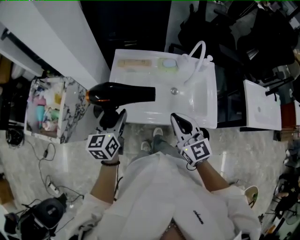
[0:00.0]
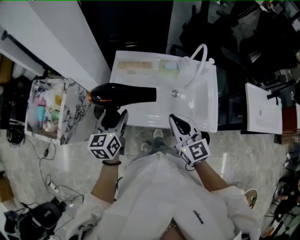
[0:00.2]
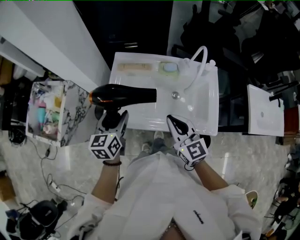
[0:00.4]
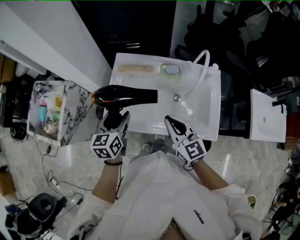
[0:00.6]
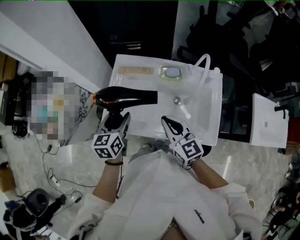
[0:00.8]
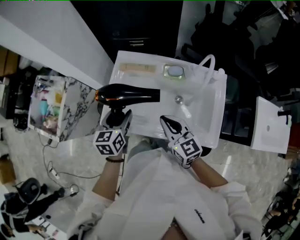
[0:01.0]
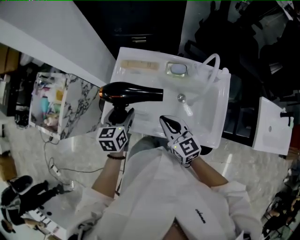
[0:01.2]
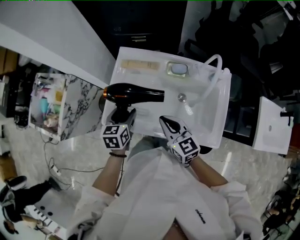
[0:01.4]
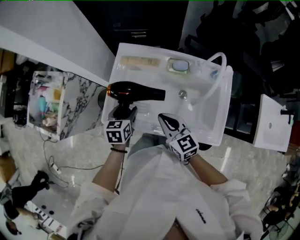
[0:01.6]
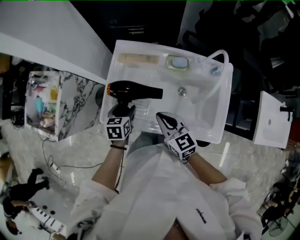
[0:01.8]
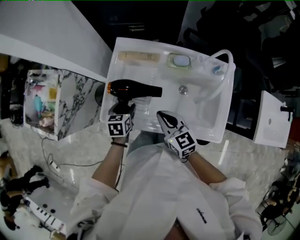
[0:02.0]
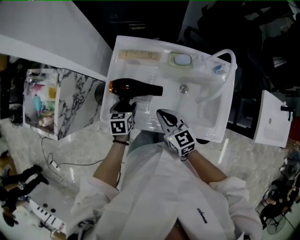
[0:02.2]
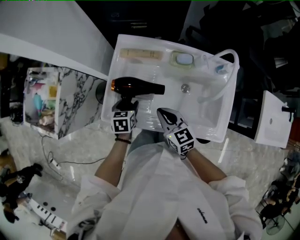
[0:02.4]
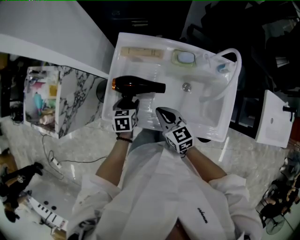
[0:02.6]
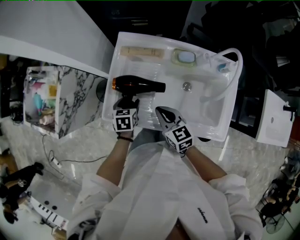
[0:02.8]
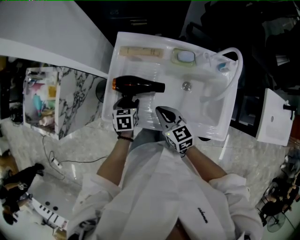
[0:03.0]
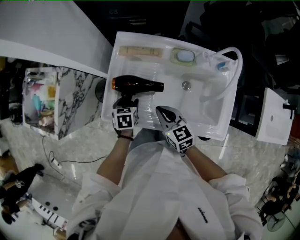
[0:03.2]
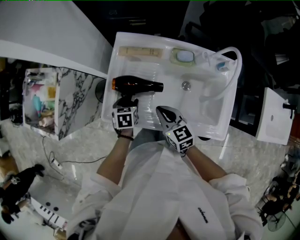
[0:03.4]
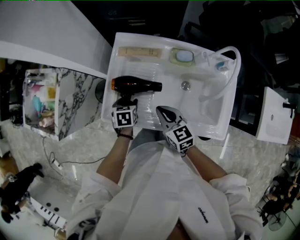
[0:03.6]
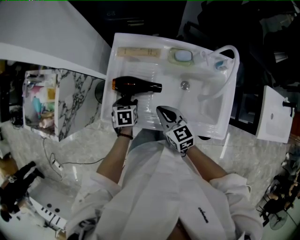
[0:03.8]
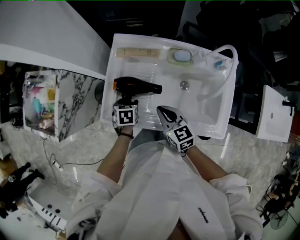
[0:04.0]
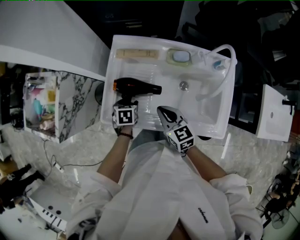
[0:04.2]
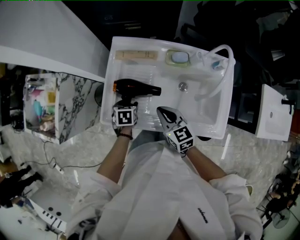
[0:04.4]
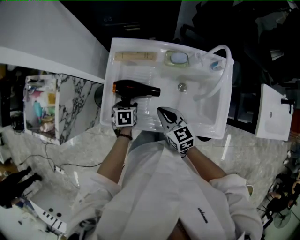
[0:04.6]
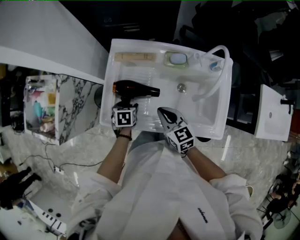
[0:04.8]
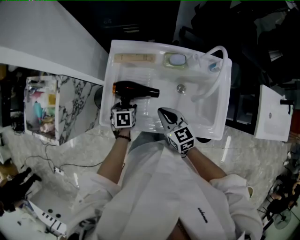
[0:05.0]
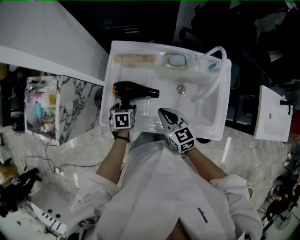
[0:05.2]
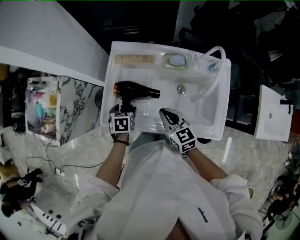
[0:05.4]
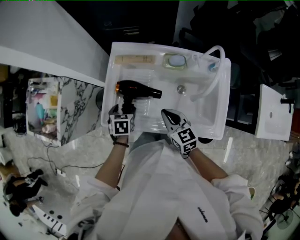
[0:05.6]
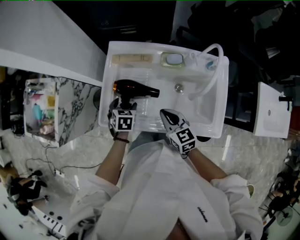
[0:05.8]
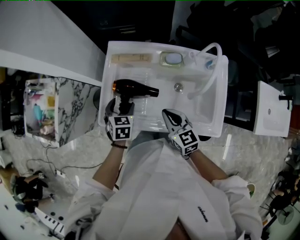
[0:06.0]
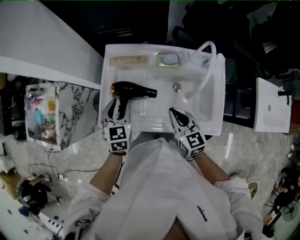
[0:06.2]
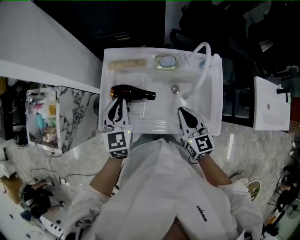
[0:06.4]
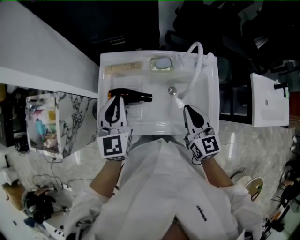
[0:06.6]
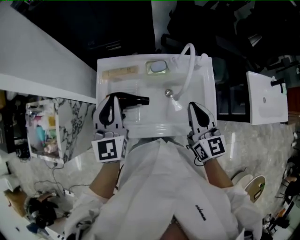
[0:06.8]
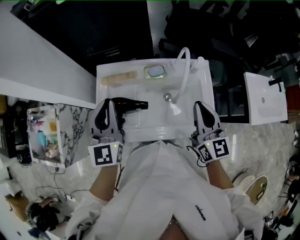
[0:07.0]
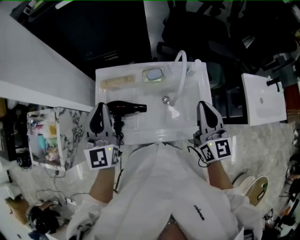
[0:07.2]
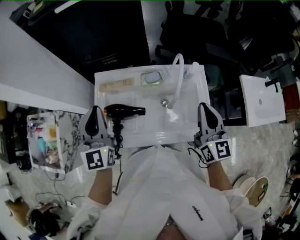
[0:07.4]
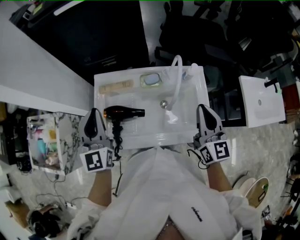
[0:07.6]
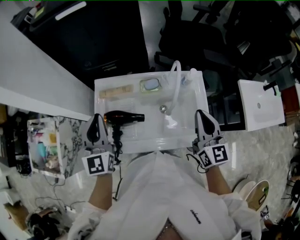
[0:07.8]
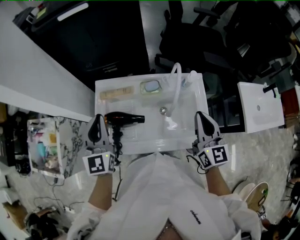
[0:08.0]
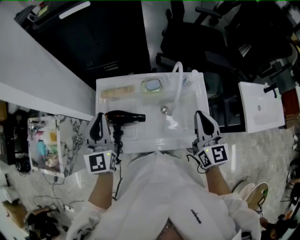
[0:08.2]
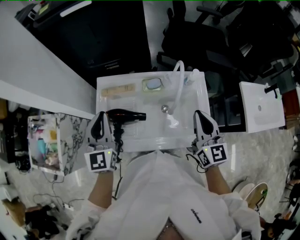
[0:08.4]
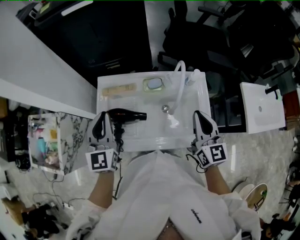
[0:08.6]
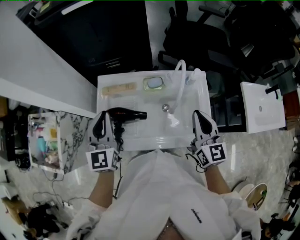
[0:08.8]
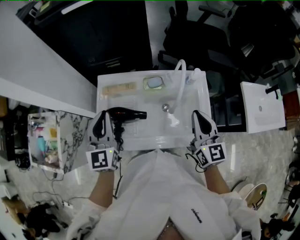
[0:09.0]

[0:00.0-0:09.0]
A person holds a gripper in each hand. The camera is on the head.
0.0 to 1.6 s: The right gripper shifts roughly 15 cm downward and forward, and swivels approximately 20 degrees, while the left gripper heads downward, forward and to the right, covering some 20 cm, and changes its angle by approximately 30 degrees.
1.6 to 3.0 s: Both grippers move downward, approximately 10 cm.
3.0 to 4.4 s: The grippers stay close to where they were, moving slightly.
4.4 to 6.0 s: The right gripper shifts by approximately 5 cm. Meanwhile the left gripper heads upward, covering some 10 cm, and swivels some 20 degrees.
6.0 to 7.6 s: The left gripper moves upward, about 30 cm, points its fingers approximately 50 degrees further upward, and closes; the right gripper moves upward and to the right, roughly 30 cm, and rotates approximately 40 degrees.
7.6 to 9.0 s: The grippers move only a little.

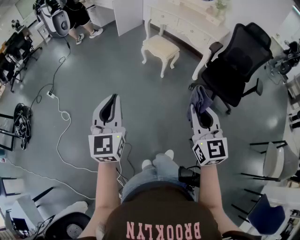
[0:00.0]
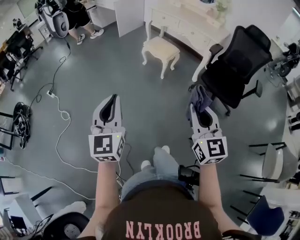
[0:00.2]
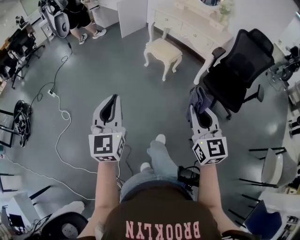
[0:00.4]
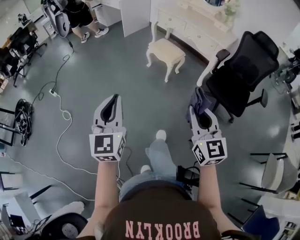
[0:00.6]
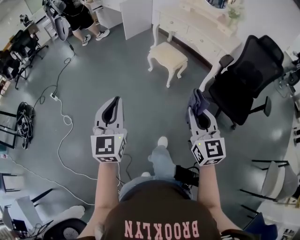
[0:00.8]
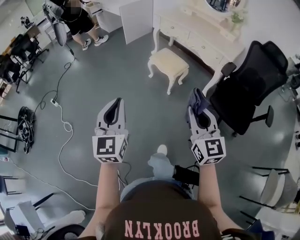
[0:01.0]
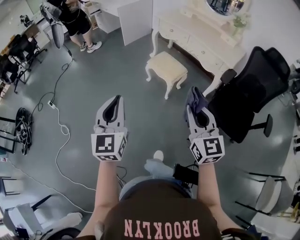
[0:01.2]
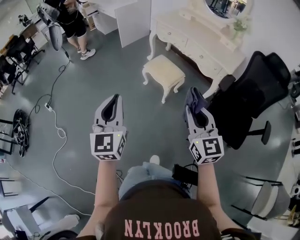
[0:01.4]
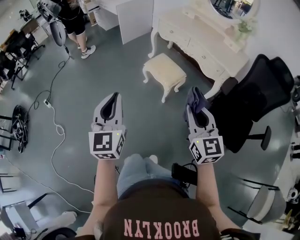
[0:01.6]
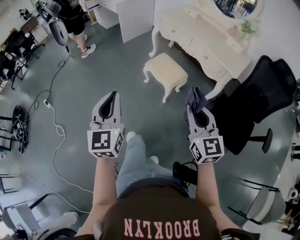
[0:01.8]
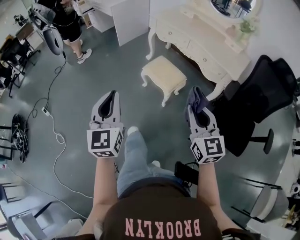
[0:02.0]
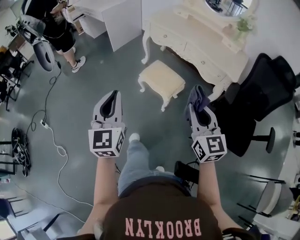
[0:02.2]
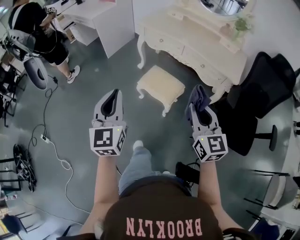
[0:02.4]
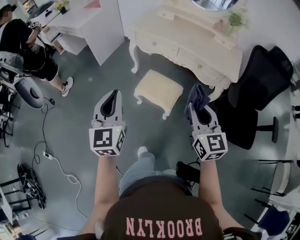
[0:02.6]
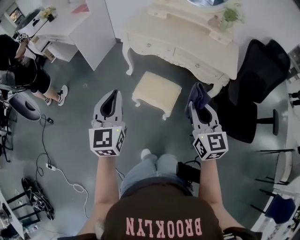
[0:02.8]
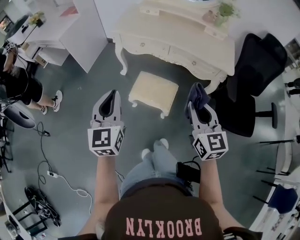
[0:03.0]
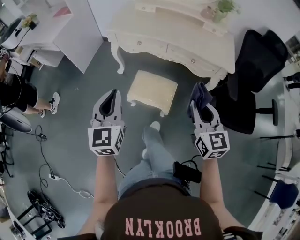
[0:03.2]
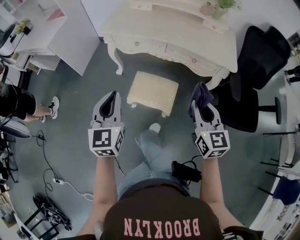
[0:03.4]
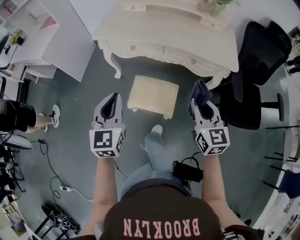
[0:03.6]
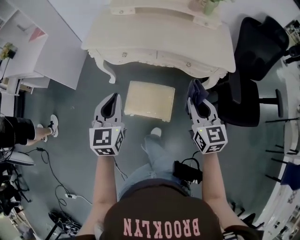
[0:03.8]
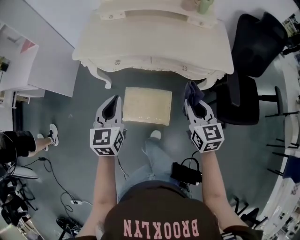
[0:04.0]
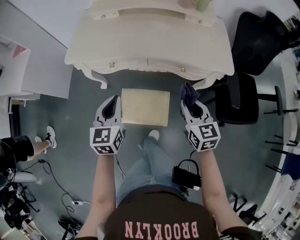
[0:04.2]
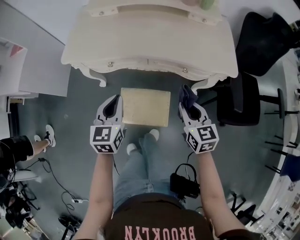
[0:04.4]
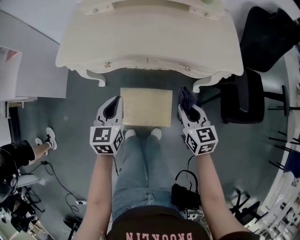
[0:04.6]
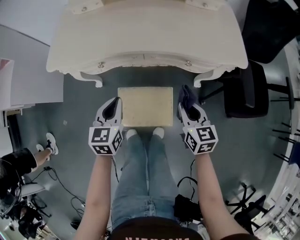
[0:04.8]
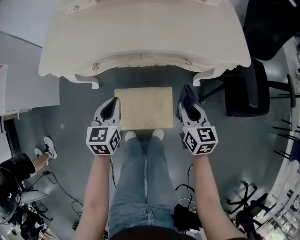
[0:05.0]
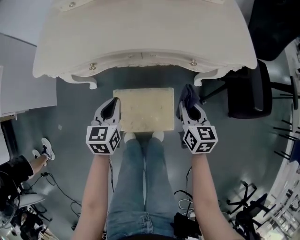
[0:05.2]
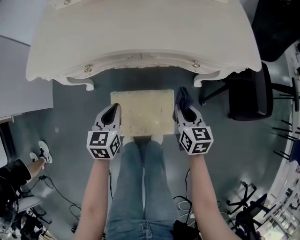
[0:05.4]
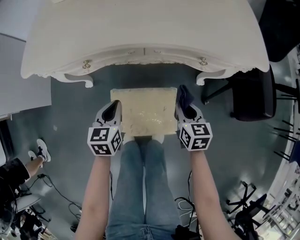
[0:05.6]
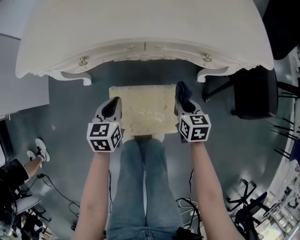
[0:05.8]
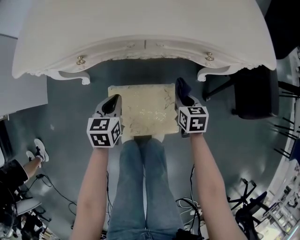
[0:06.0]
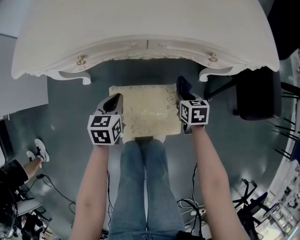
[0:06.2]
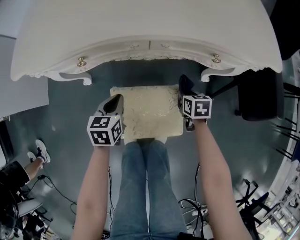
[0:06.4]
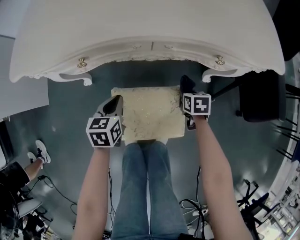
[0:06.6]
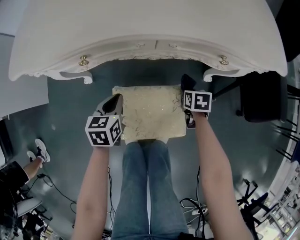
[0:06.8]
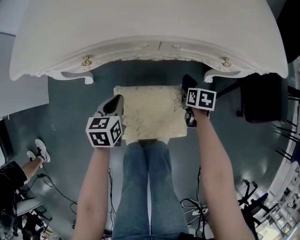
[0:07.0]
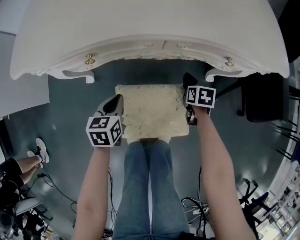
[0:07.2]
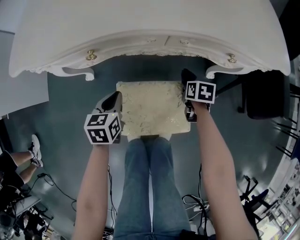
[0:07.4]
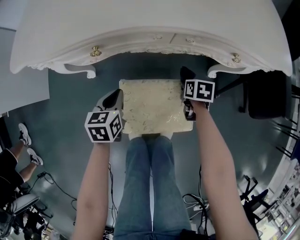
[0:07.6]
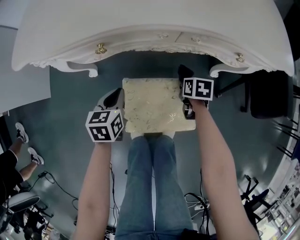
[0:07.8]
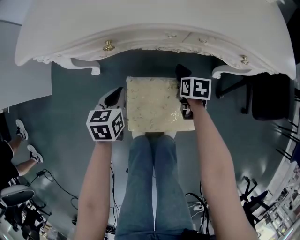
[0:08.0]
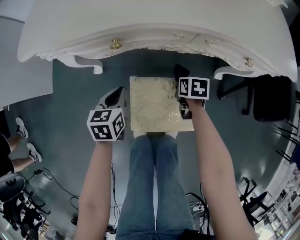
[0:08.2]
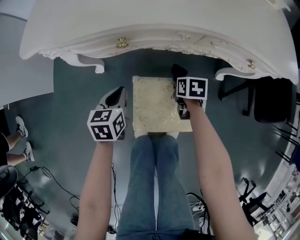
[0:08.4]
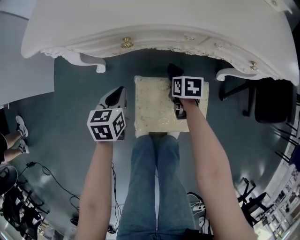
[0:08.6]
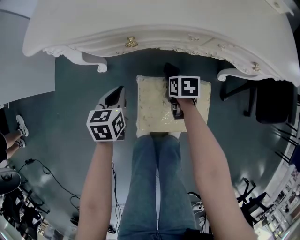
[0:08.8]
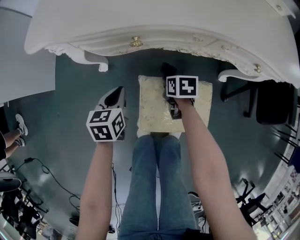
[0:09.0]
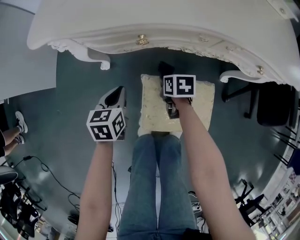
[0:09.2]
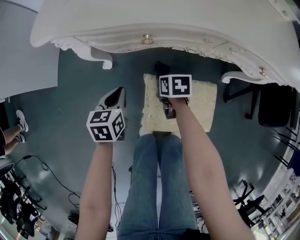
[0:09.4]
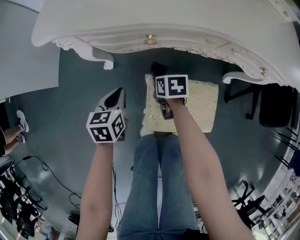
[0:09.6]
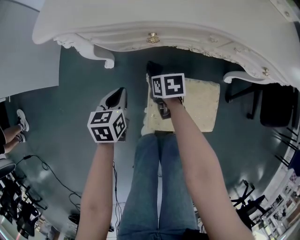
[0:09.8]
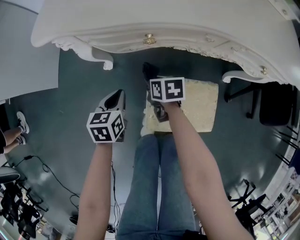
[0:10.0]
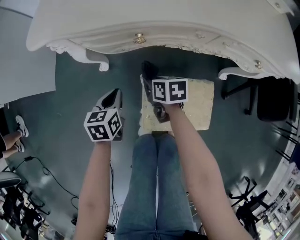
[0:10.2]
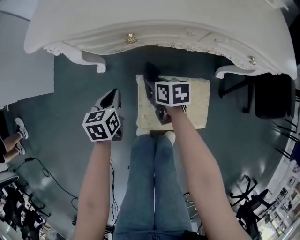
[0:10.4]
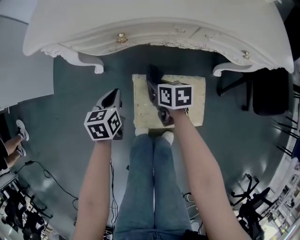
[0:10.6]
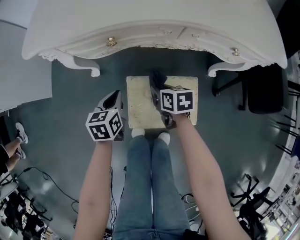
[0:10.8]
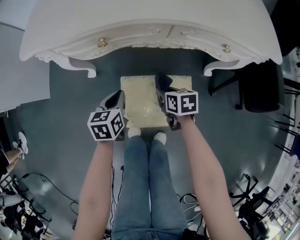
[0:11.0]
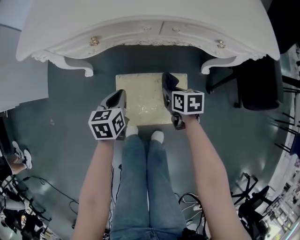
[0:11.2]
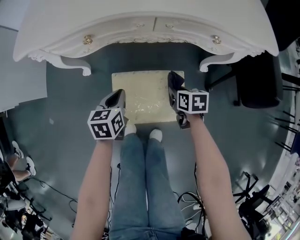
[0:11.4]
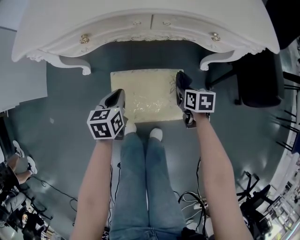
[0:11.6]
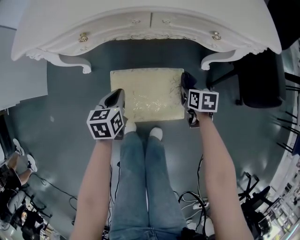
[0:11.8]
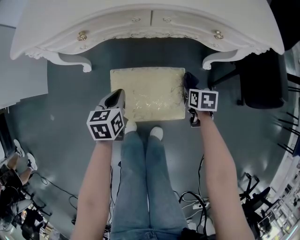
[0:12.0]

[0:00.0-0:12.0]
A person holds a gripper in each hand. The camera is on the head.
0.0 to 1.6 s: Both grippers move forward, some 35 cm.
1.6 to 3.0 s: The left gripper changes place by roughly 40 cm, and changes its angle by some 30 degrees. Meanwhile the right gripper ends up about 35 cm from where it was, and swivels some 30 degrees.
3.0 to 4.4 s: The two grippers go approximately 35 cm forward and downward. The right gripper turns by some 20 degrees. The left gripper changes its angle by roughly 30 degrees.
4.4 to 6.0 s: Both grippers travel together downward, approximately 35 cm. The right gripper changes its angle by some 30 degrees. Meanwhile the left gripper turns by approximately 20 degrees.
6.0 to 7.6 s: The right gripper is displaced downward by about 5 cm, and rotates about 20 degrees. The left gripper heads to the left, covering roughly 5 cm.
7.6 to 9.0 s: The left gripper goes about 10 cm to the left, while the right gripper moves to the left, some 20 cm.
9.0 to 10.4 s: The right gripper moves to the left, roughly 5 cm.
10.4 to 12.0 s: The left gripper goes roughly 15 cm to the right and backward. Meanwhile the right gripper heads to the right and backward, covering about 35 cm, and swivels roughly 20 degrees.

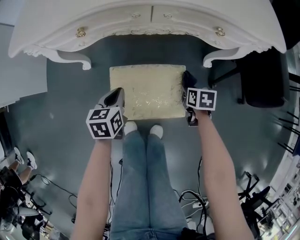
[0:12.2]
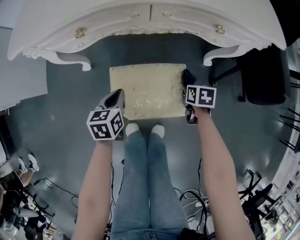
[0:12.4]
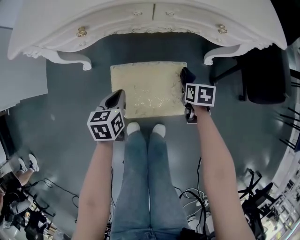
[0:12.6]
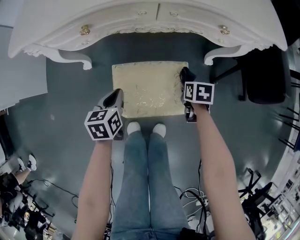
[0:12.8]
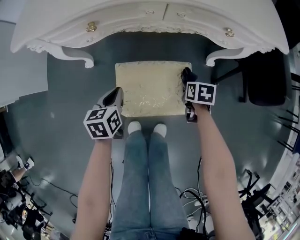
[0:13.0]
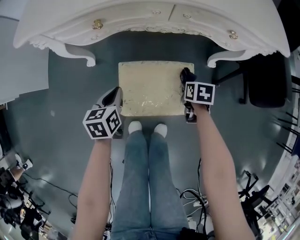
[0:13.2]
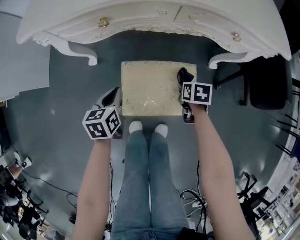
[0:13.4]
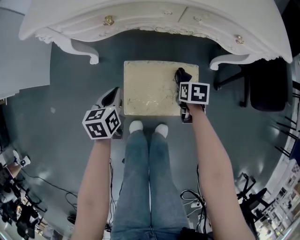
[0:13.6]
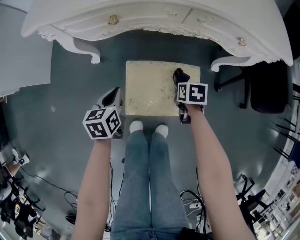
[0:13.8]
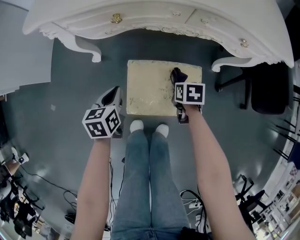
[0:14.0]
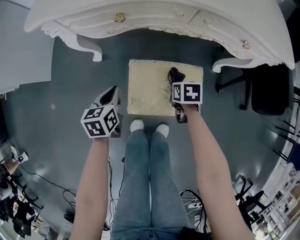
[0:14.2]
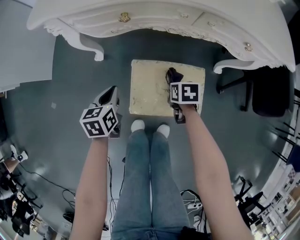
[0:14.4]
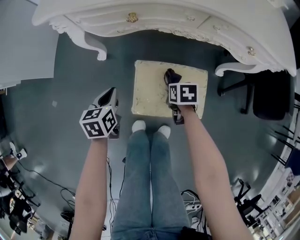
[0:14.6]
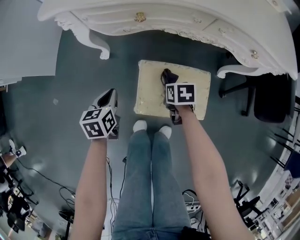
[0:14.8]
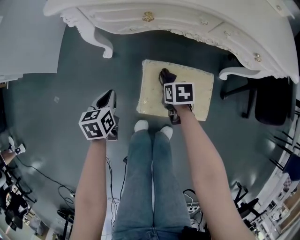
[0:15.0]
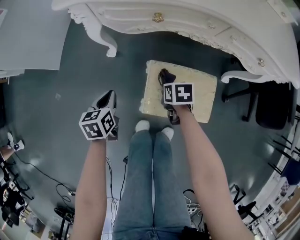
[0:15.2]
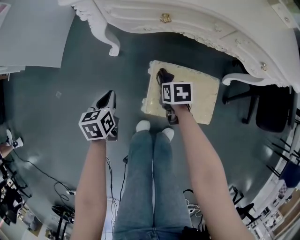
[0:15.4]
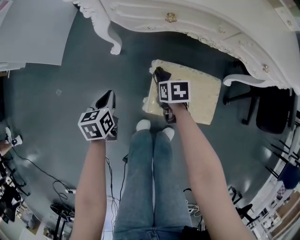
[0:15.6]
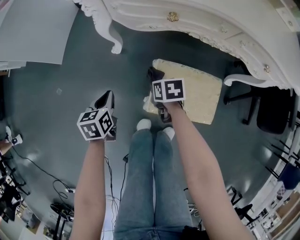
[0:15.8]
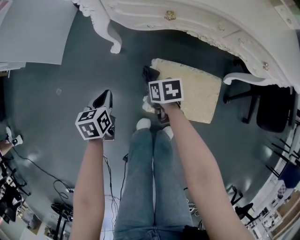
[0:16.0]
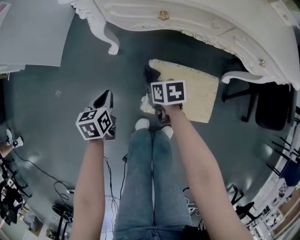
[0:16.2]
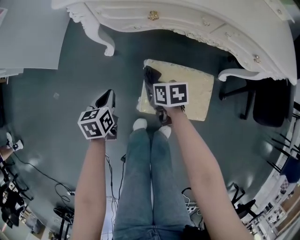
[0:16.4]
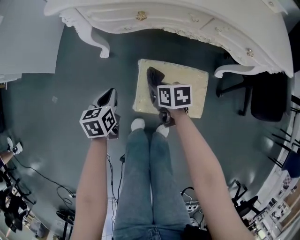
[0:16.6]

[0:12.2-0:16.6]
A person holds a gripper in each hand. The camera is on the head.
12.2 to 13.6 s: Both grippers move to the left, roughly 10 cm.
13.6 to 15.2 s: Both grippers travel together to the left, approximately 15 cm.
15.2 to 16.6 s: The right gripper moves roughly 10 cm to the left and comes back.
